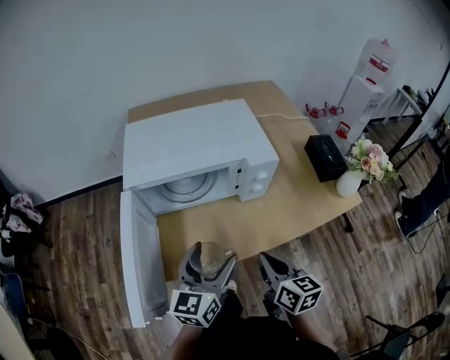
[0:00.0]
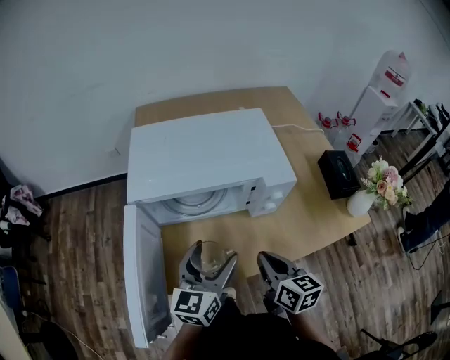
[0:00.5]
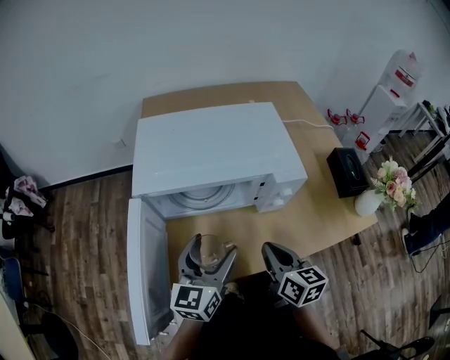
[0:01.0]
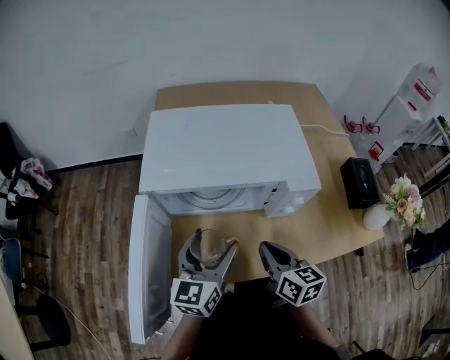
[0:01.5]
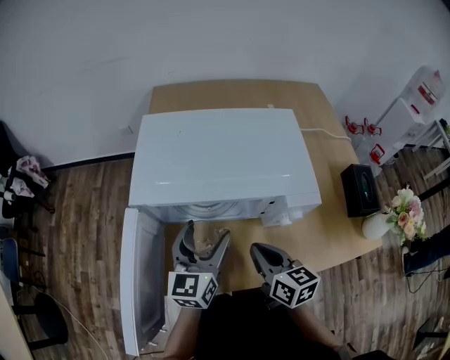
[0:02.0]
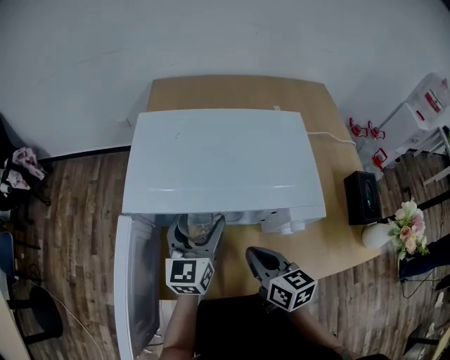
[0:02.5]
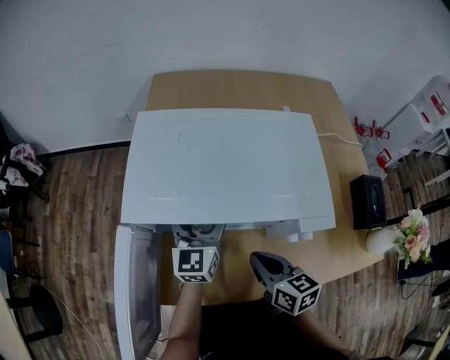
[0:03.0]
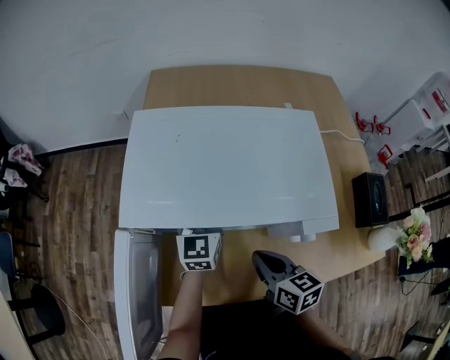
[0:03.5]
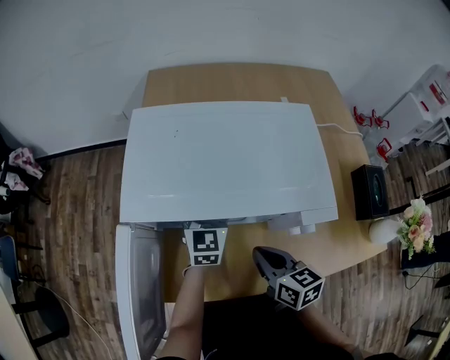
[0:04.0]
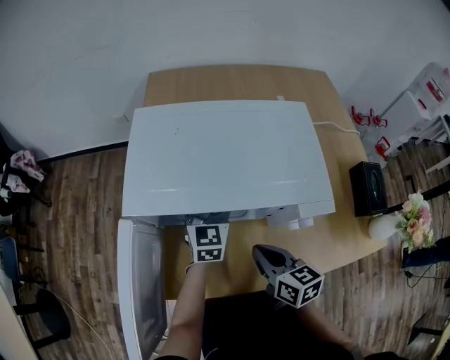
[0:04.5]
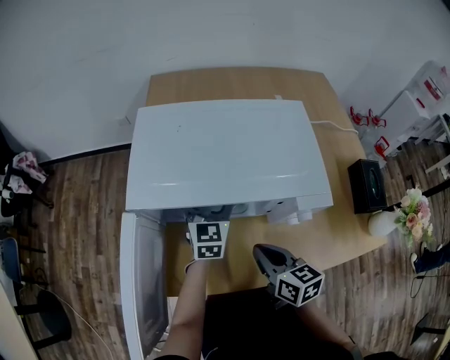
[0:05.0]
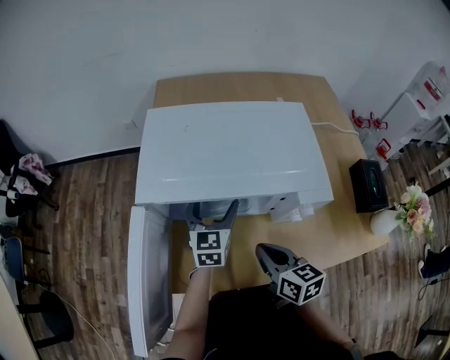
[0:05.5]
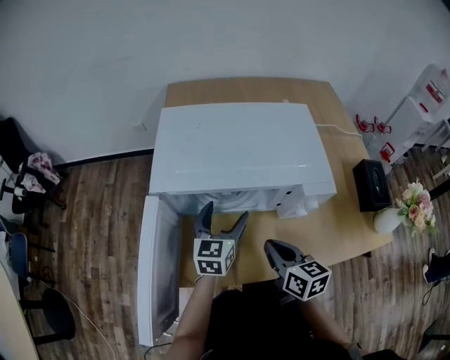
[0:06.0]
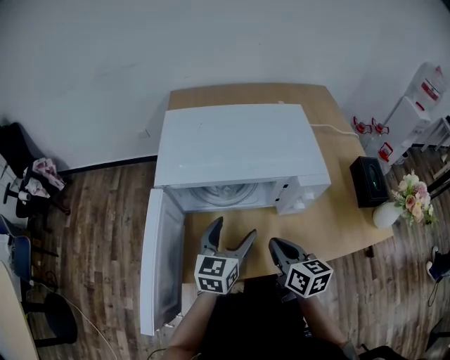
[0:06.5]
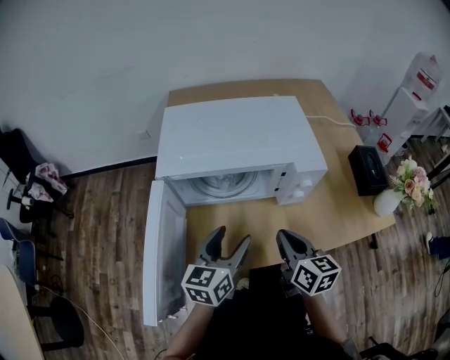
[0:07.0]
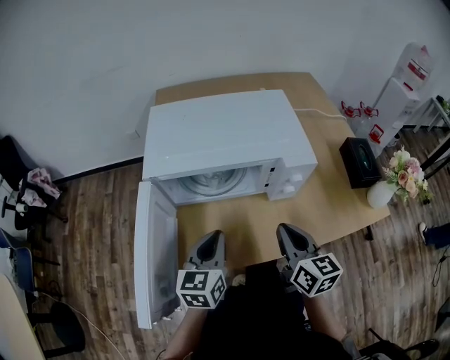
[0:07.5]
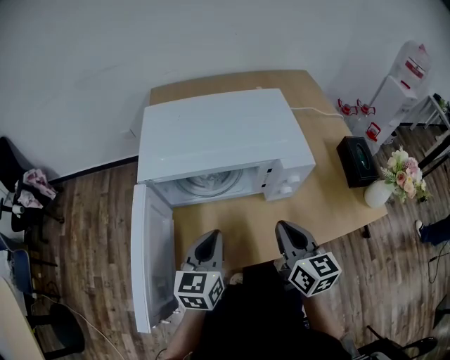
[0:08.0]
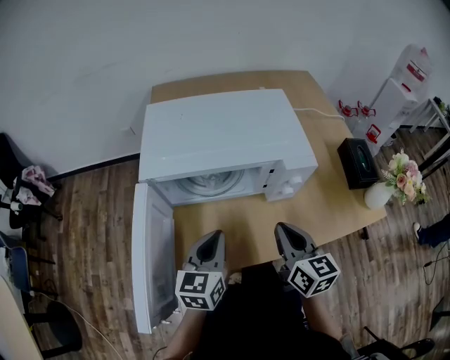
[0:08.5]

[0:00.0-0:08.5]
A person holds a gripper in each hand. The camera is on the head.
0:00.0 to 0:02.0: Both grippers travel together forward, roughly 15 cm.
0:02.0 to 0:04.0: The left gripper is displaced forward and downward by about 15 cm.
0:04.0 to 0:06.5: The right gripper heads backward, covering about 5 cm. The left gripper goes roughly 20 cm backward.
0:06.5 to 0:08.5: The left gripper heads backward, covering approximately 5 cm, and closes its fingers; the right gripper heads upward, covering about 5 cm.

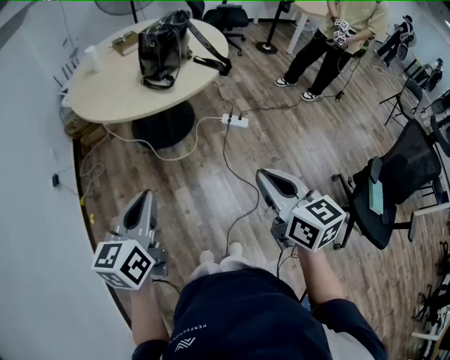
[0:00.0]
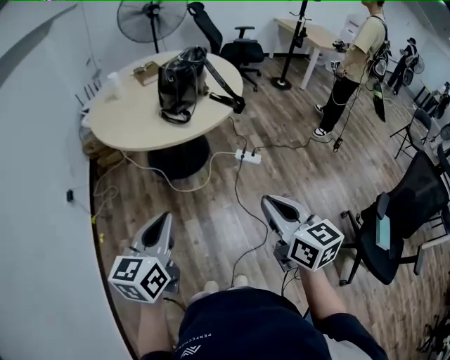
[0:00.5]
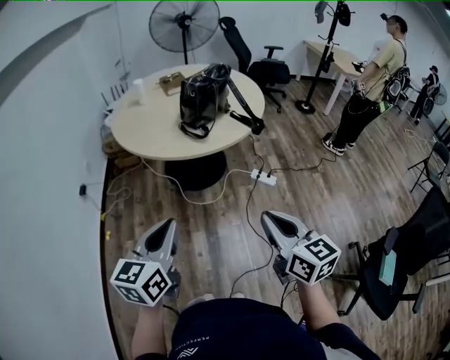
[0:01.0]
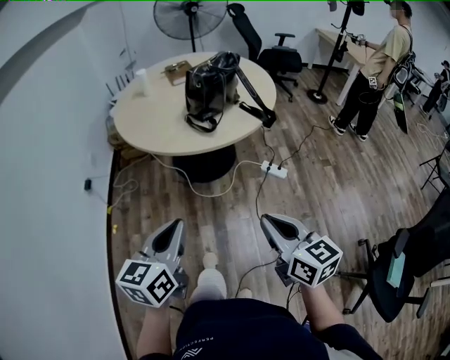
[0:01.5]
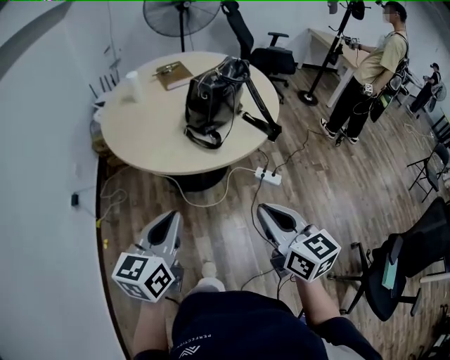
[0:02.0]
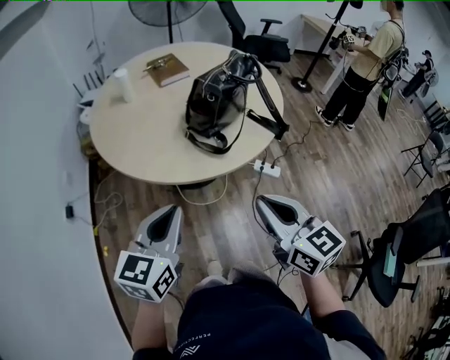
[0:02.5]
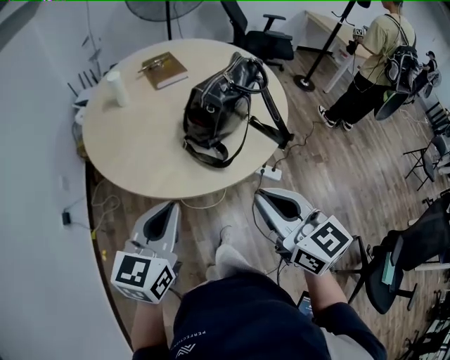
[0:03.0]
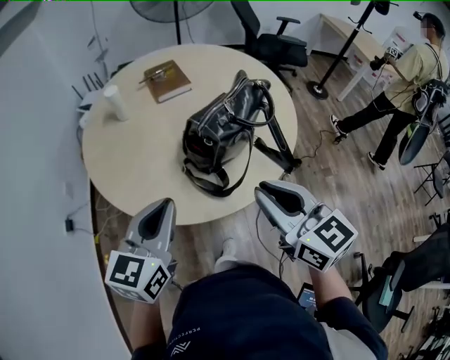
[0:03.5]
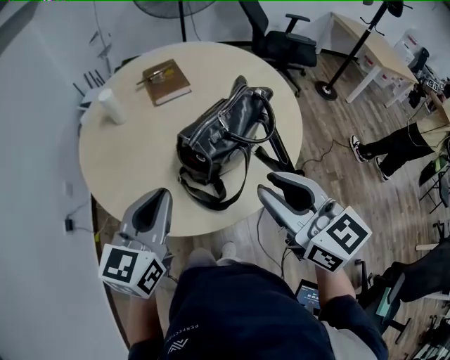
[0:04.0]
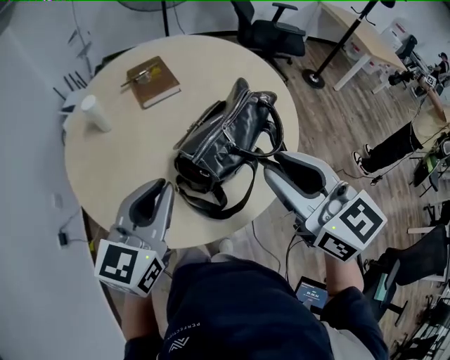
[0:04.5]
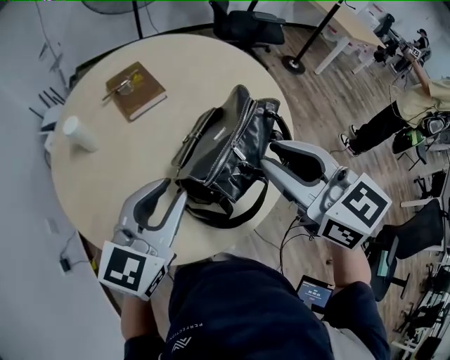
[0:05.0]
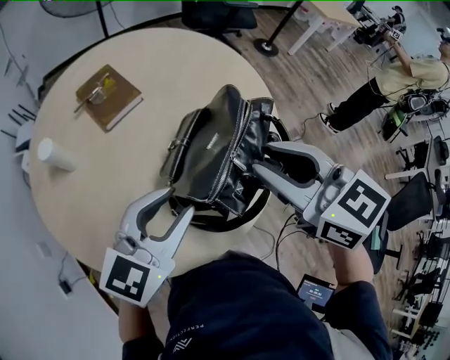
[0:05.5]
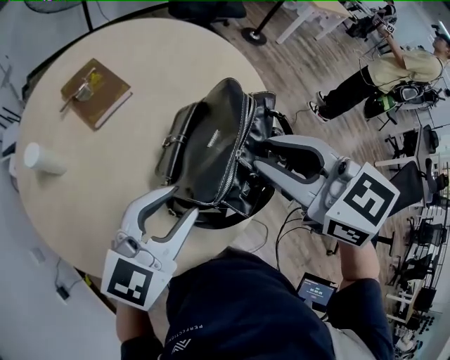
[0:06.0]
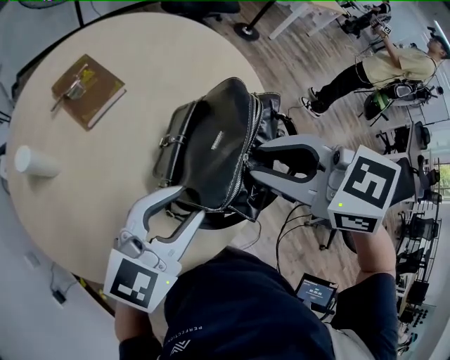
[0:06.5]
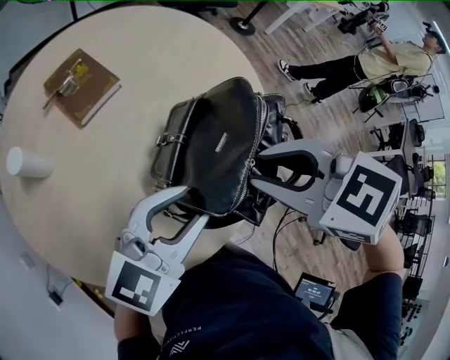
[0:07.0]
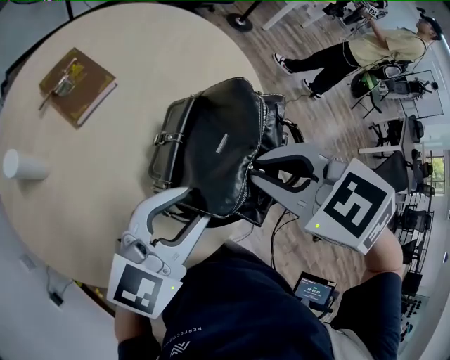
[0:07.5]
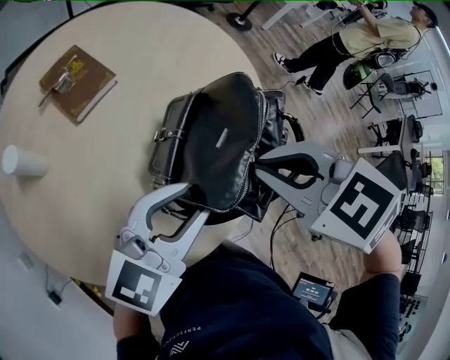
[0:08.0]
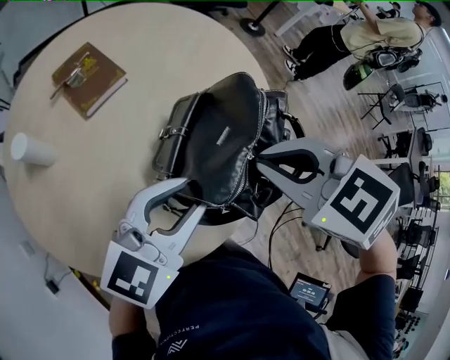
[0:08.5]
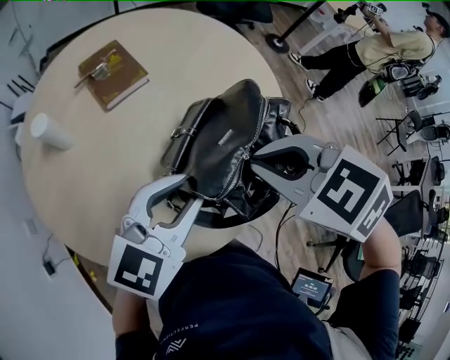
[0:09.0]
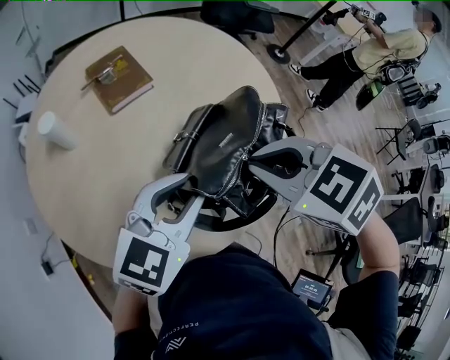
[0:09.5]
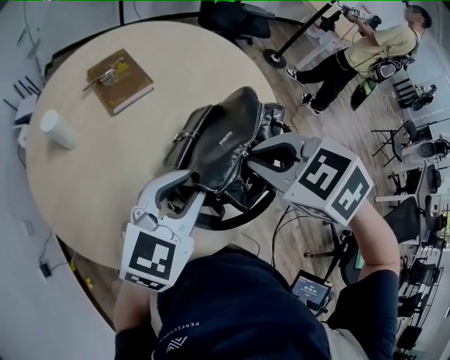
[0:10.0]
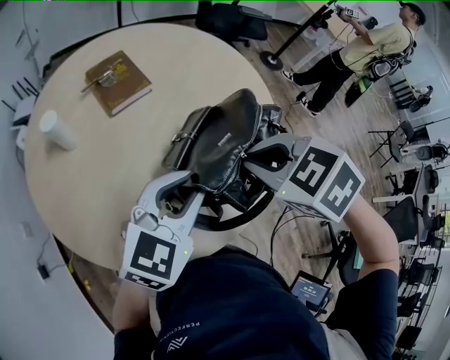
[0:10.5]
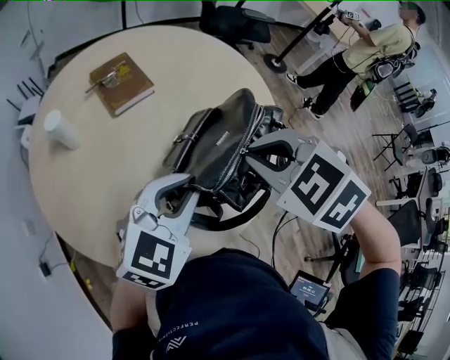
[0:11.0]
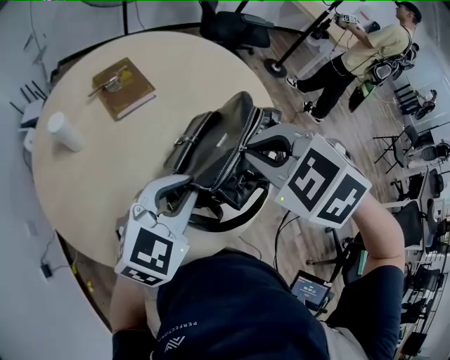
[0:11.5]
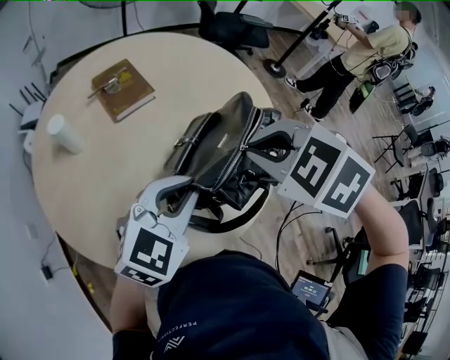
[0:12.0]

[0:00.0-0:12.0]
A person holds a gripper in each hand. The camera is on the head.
0:00.0 to 0:02.0: The two grippers go roughly 20 cm forward.
0:02.0 to 0:04.0: The grippers both shift forward by about 30 cm. The right gripper opens its fingers.
0:04.0 to 0:06.0: The right gripper moves about 15 cm, and changes its angle by approximately 30 degrees. Meanwhile the left gripper changes place by some 10 cm, swivels some 50 degrees, and opens its fingers.
0:06.0 to 0:08.0: The right gripper swivels about 30 degrees, and closes up.
0:08.0 to 0:10.0: The left gripper changes its angle by roughly 20 degrees.
0:10.0 to 0:12.0: The grippers move only a little.

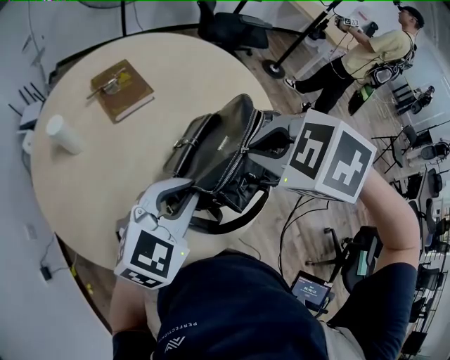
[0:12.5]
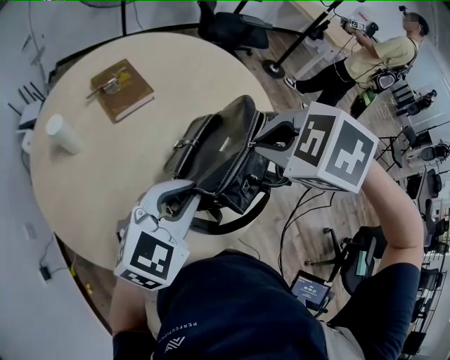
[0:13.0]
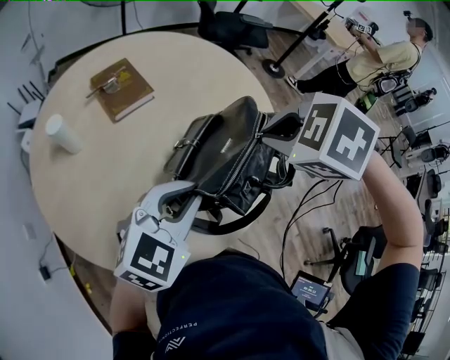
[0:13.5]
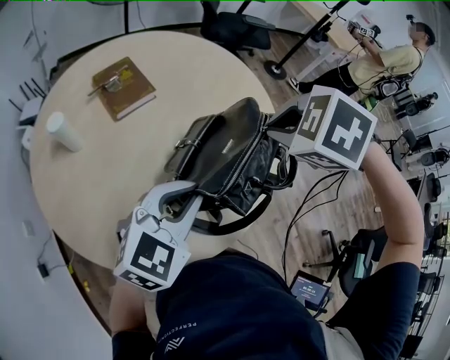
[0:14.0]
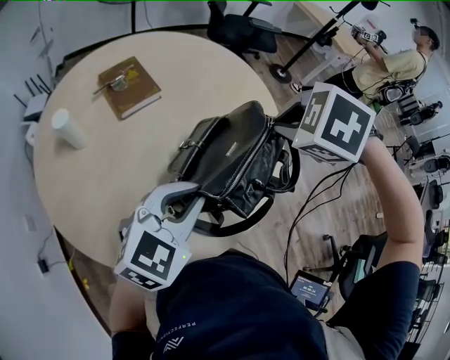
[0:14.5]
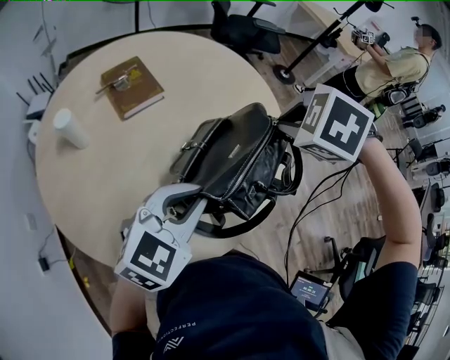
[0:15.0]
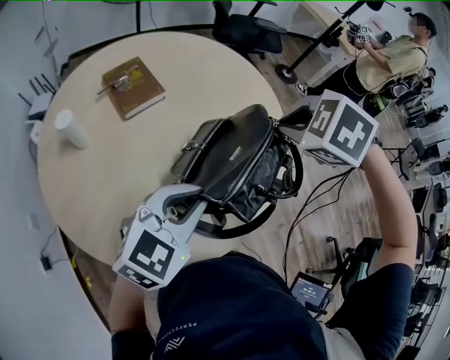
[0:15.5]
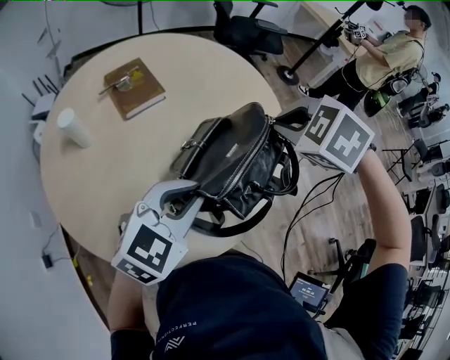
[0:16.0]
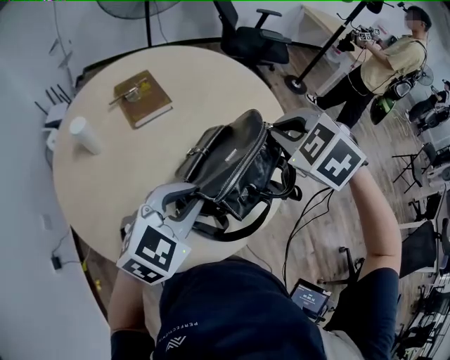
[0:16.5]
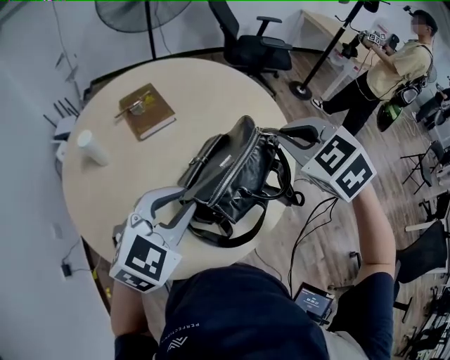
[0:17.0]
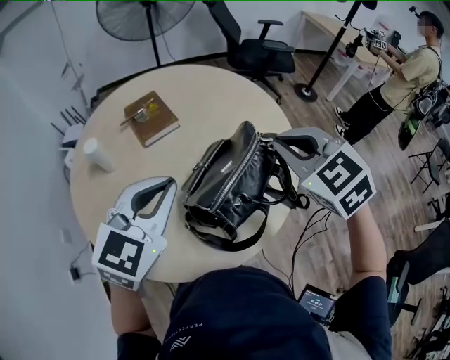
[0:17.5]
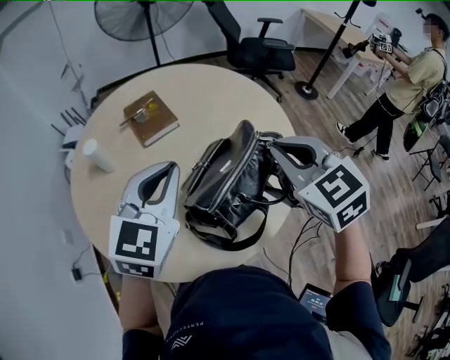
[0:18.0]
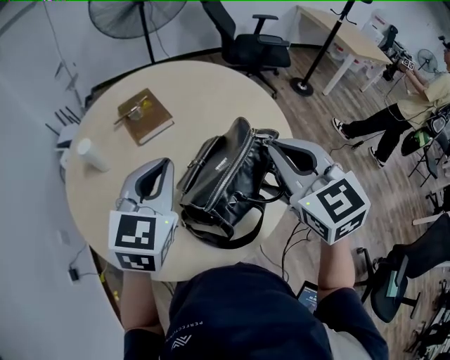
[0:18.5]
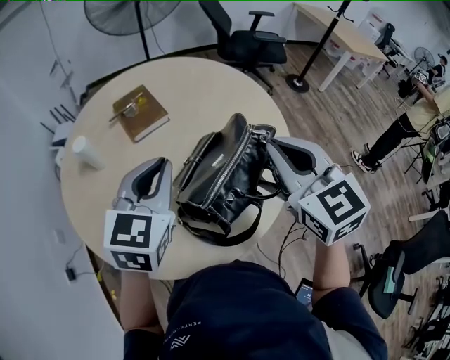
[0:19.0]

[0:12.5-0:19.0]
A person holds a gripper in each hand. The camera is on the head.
0:12.5 to 0:14.5: The right gripper moves about 10 cm.
0:14.5 to 0:17.0: The right gripper angles its fingers upward, by about 30 degrees.
0:17.0 to 0:19.0: The right gripper ends up some 5 cm from where it was, and turns by roughly 30 degrees. The left gripper travels forward by about 5 cm, swivels approximately 30 degrees, and closes up.
